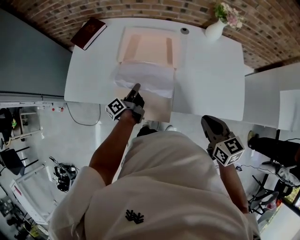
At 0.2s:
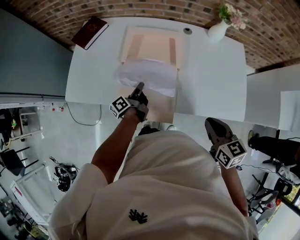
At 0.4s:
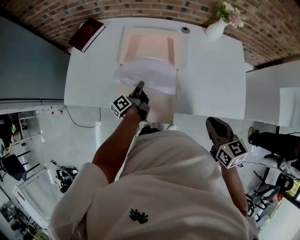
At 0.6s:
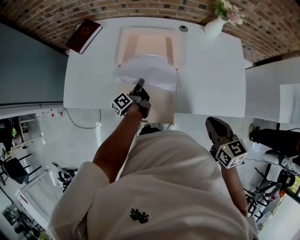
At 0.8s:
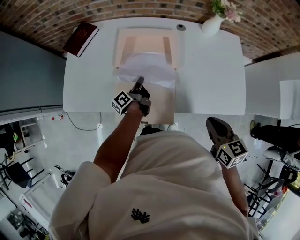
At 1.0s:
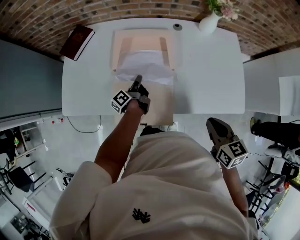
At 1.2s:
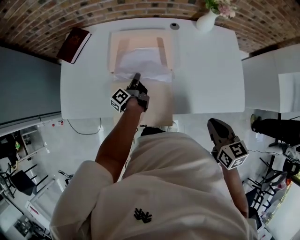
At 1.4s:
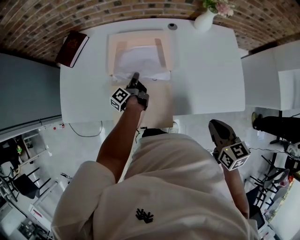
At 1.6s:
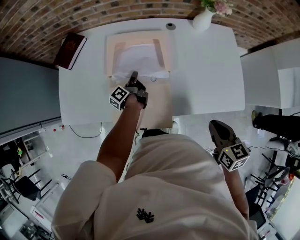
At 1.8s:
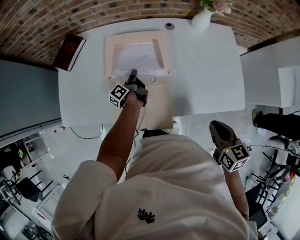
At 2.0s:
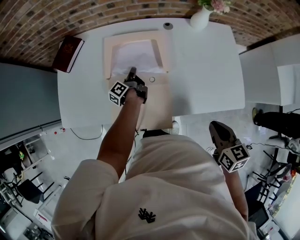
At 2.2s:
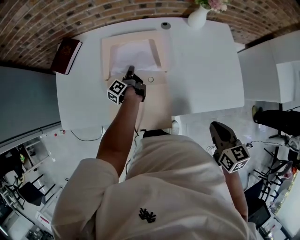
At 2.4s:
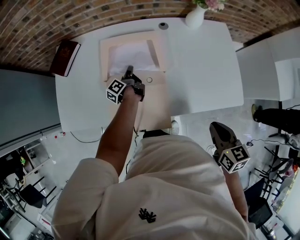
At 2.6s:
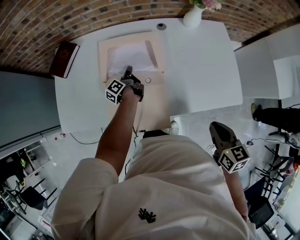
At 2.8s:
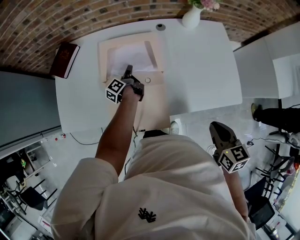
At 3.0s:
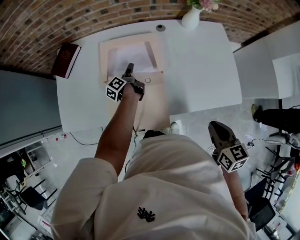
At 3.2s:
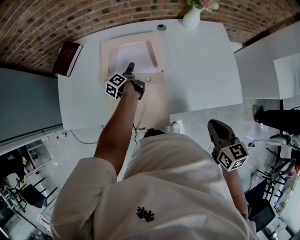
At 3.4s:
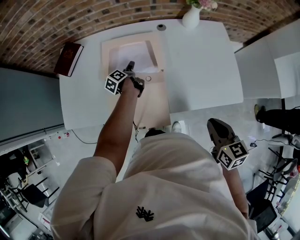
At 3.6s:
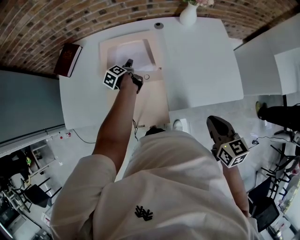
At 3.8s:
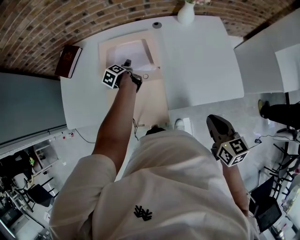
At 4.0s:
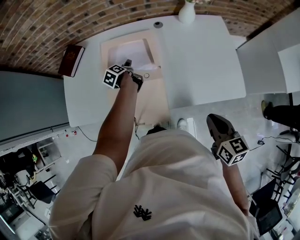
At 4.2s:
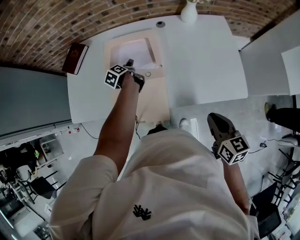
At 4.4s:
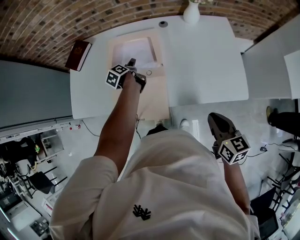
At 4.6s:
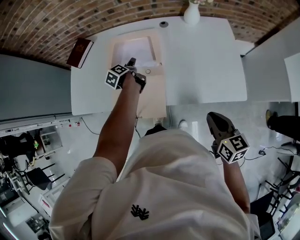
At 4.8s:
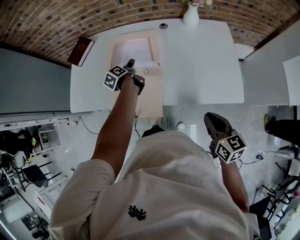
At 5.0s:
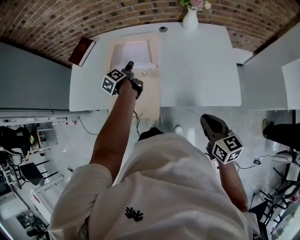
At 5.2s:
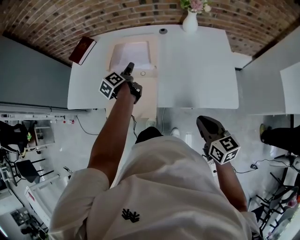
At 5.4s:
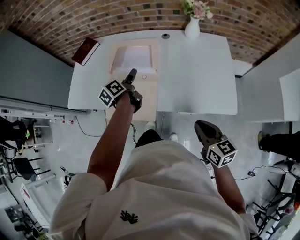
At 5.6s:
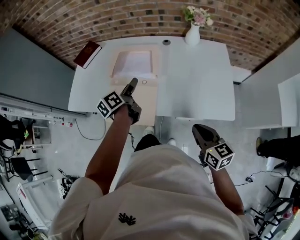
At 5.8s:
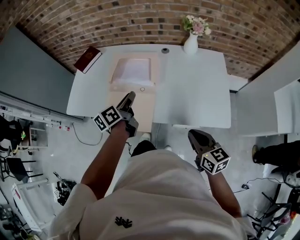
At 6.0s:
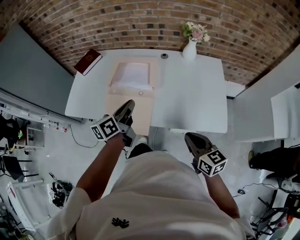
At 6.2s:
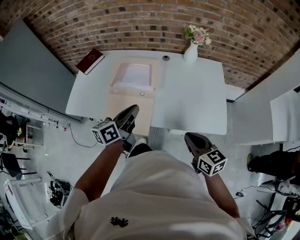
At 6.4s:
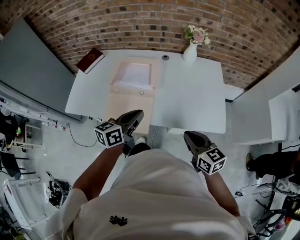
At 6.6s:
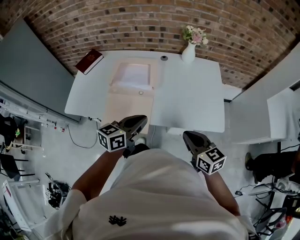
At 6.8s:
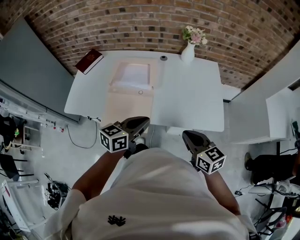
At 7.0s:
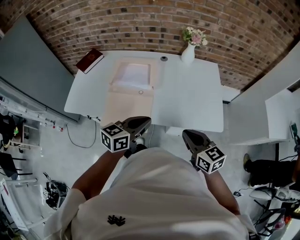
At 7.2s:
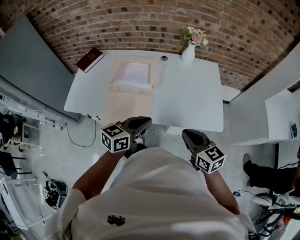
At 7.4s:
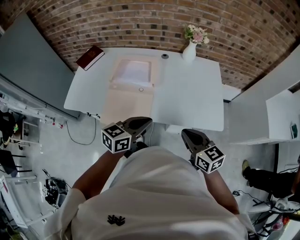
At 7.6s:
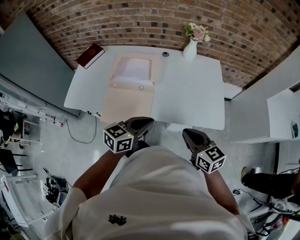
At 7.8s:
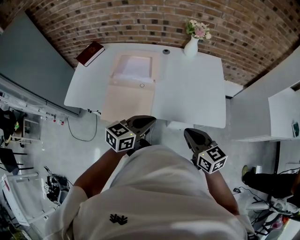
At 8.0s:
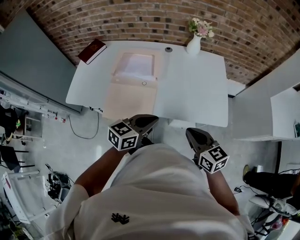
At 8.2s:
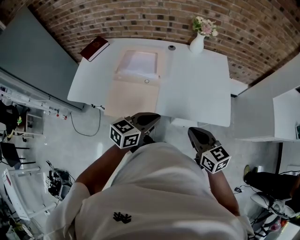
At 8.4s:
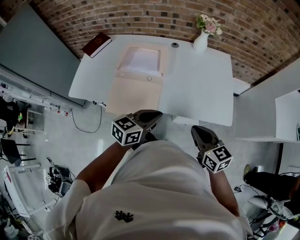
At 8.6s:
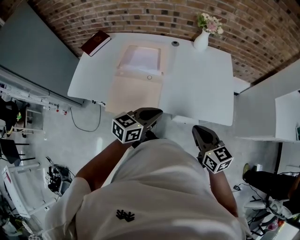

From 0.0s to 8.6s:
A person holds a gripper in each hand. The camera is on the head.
From 0.0s to 1.4s: The left gripper goes approximately 15 cm forward.
From 1.4s to 2.8s: The left gripper shifts some 5 cm forward.
From 2.8s to 4.4s: The left gripper shifts about 5 cm backward, rotates some 30 degrees, and opens. Meanwhile the right gripper travels to the right by roughly 5 cm.
From 4.4s to 5.8s: The left gripper moves backward and upward, approximately 25 cm, swivels some 30 degrees, and closes.
From 5.8s to 7.2s: The left gripper travels backward and to the right by about 20 cm, swivels roughly 50 degrees, and closes up. Meanwhile the right gripper ends up some 5 cm from where it was.
From 7.2s to 8.6s: The grippers move only a little.

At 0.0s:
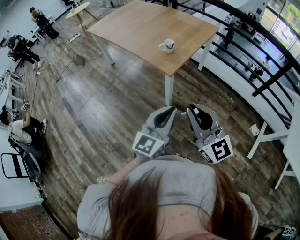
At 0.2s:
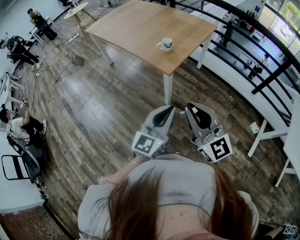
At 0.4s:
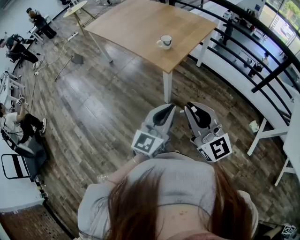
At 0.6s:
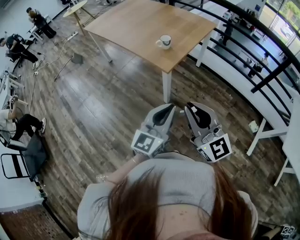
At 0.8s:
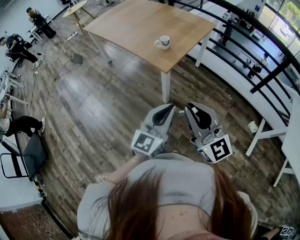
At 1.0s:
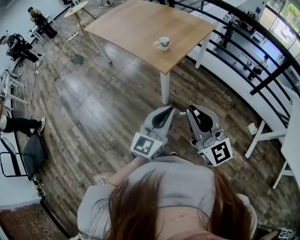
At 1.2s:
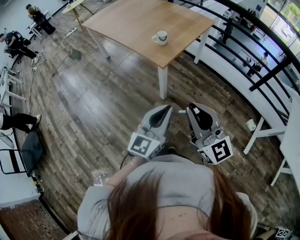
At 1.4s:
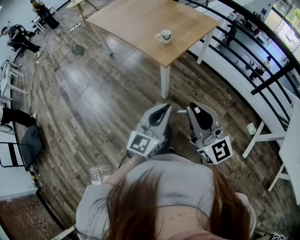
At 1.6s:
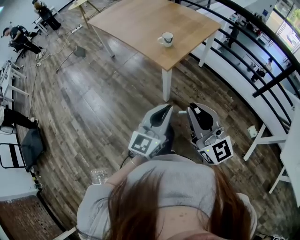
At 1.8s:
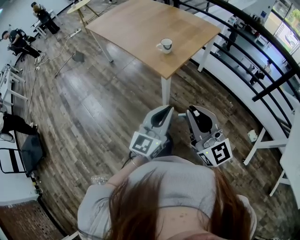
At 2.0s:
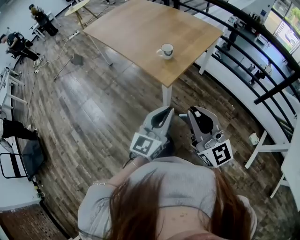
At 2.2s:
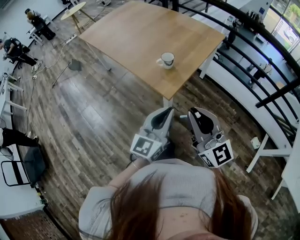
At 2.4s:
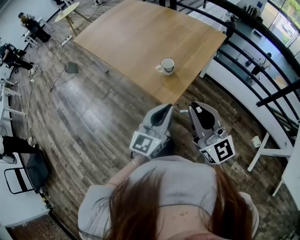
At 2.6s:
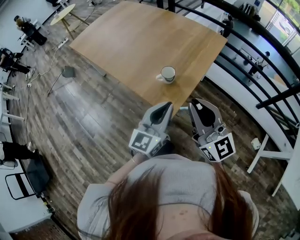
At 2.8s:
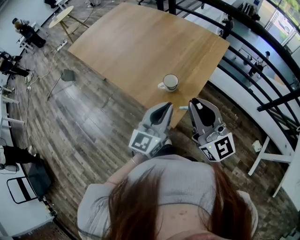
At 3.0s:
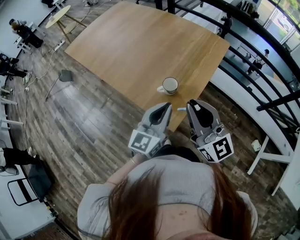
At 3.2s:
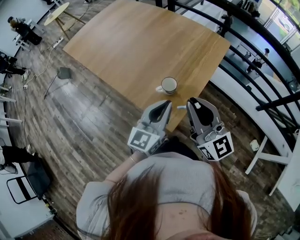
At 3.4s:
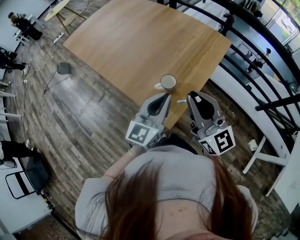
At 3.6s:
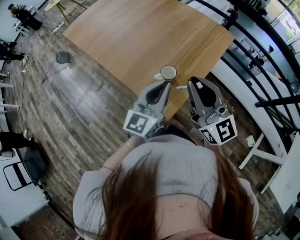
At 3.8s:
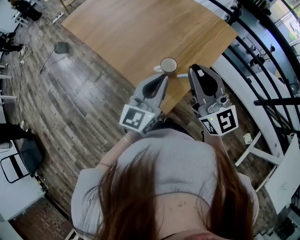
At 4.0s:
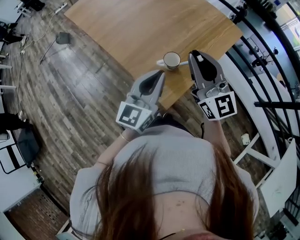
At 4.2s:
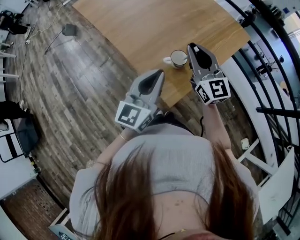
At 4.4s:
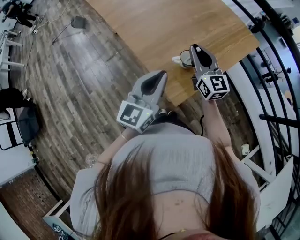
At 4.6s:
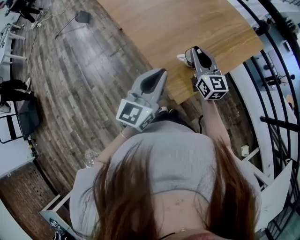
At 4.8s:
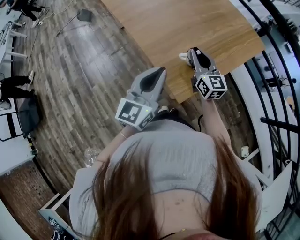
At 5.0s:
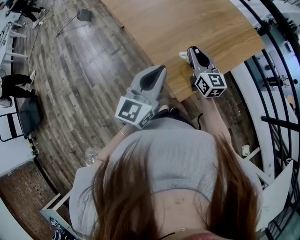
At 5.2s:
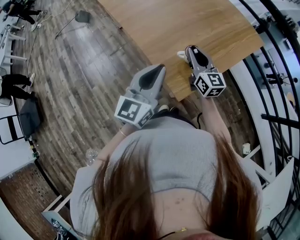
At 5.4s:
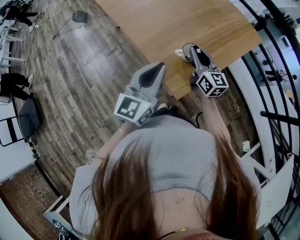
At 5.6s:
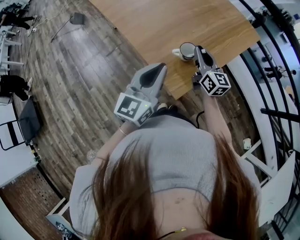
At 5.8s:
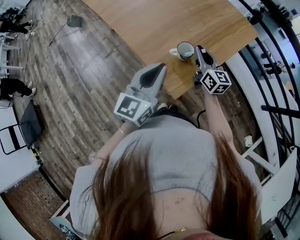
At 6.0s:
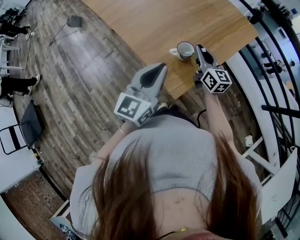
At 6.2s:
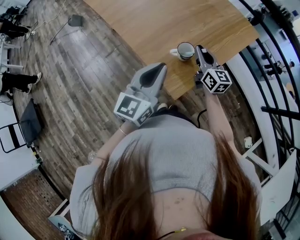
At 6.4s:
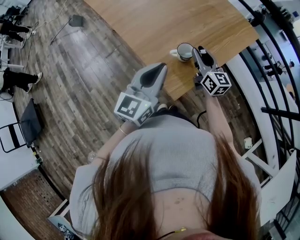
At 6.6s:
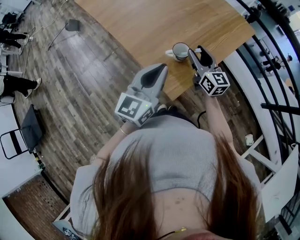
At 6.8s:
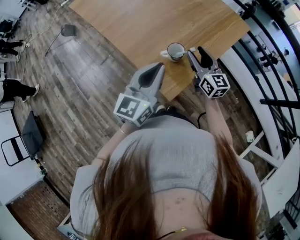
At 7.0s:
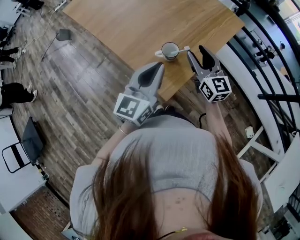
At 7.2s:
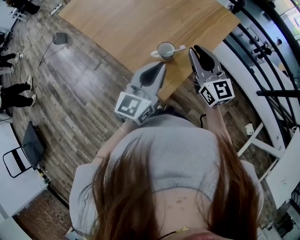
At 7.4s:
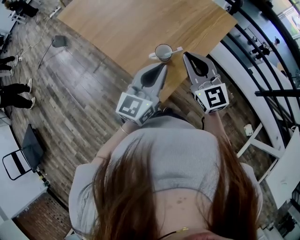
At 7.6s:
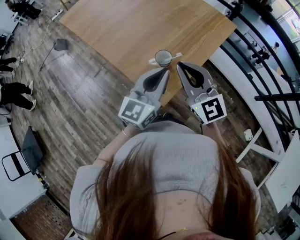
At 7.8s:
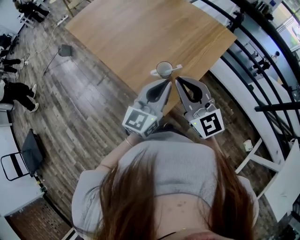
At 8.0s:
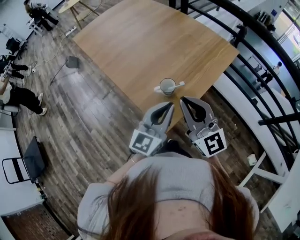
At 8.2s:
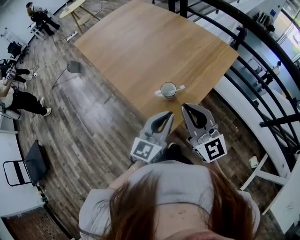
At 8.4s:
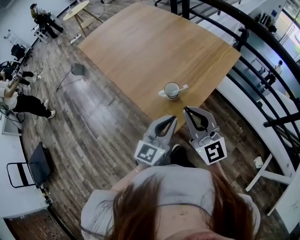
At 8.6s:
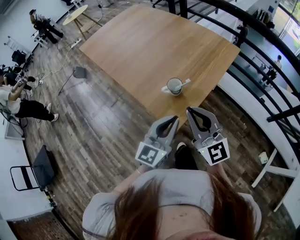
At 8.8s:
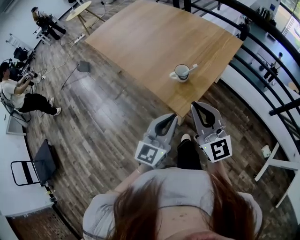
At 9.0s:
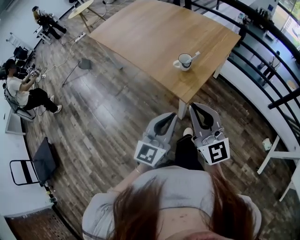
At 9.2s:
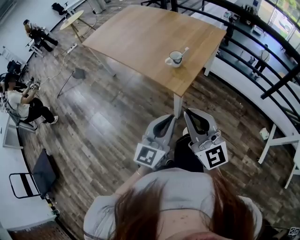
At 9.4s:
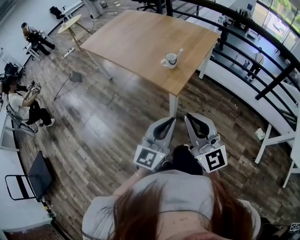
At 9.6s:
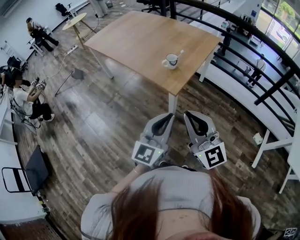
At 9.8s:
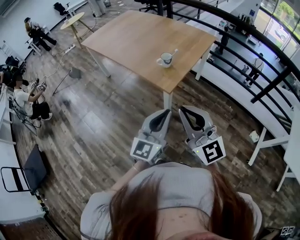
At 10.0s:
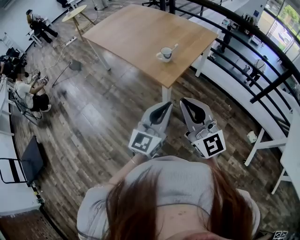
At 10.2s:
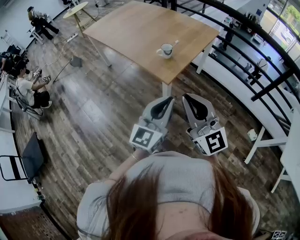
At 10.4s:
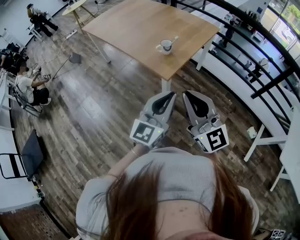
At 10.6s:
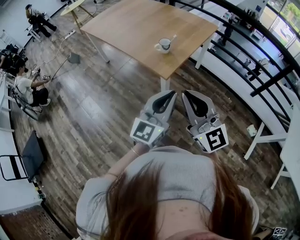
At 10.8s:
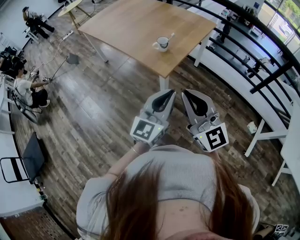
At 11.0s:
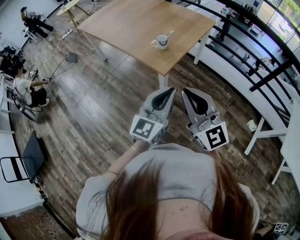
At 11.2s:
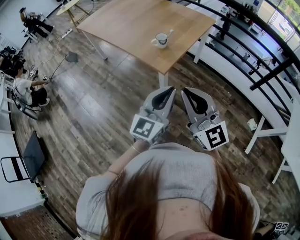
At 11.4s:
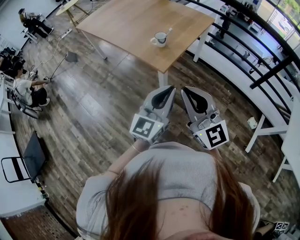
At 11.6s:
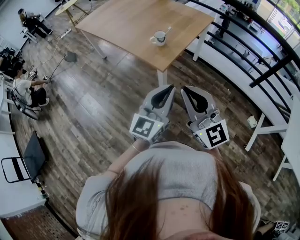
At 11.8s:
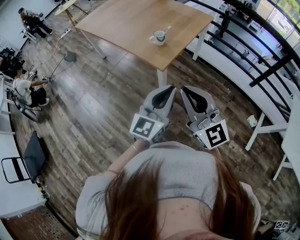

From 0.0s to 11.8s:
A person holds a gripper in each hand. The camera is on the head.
From 0.0s to 1.4s: The grippers stay close to where they were, moving slightly.
From 1.4s to 3.0s: Both grippers move forward, some 35 cm.
From 3.0s to 4.4s: The right gripper goes roughly 20 cm forward and downward.
From 4.4s to 6.0s: The right gripper heads downward, covering some 10 cm.
From 6.0s to 7.4s: The left gripper moves to the right, about 5 cm, while the right gripper moves upward and backward, approximately 15 cm, swivels some 30 degrees, and opens and closes again.
From 7.4s to 8.8s: The grippers both shift backward by about 15 cm.
From 8.8s to 10.4s: The left gripper goes some 15 cm backward and upward. The right gripper is displaced backward by some 20 cm.
From 10.4s to 11.8s: There are only small adjustments of the grippers.

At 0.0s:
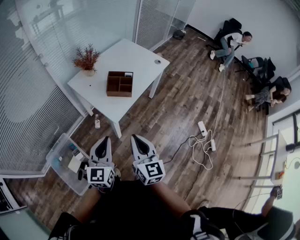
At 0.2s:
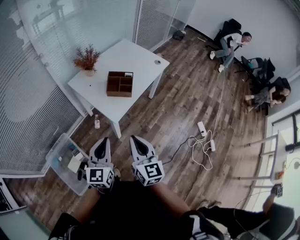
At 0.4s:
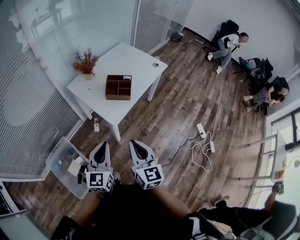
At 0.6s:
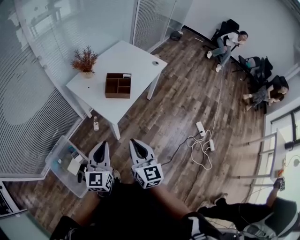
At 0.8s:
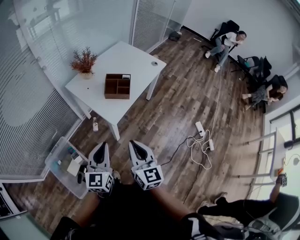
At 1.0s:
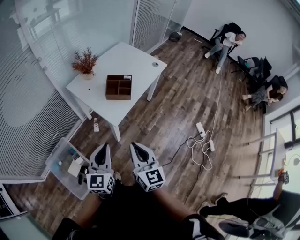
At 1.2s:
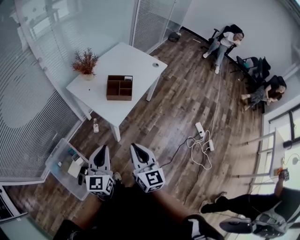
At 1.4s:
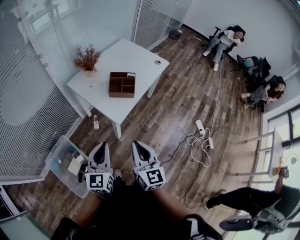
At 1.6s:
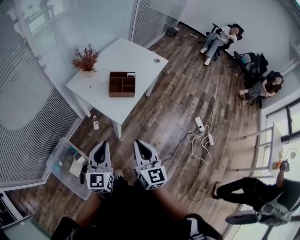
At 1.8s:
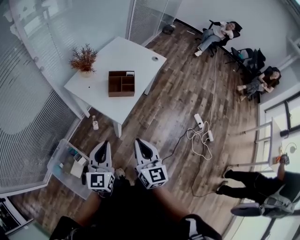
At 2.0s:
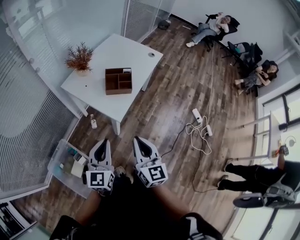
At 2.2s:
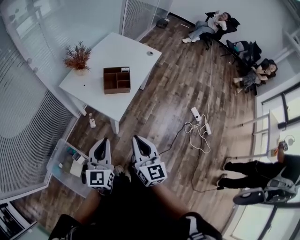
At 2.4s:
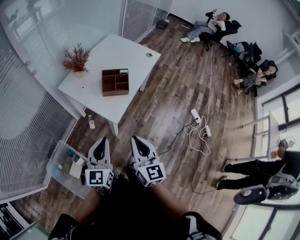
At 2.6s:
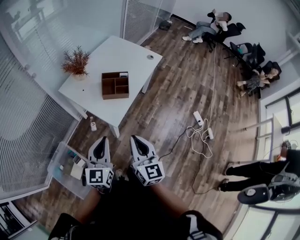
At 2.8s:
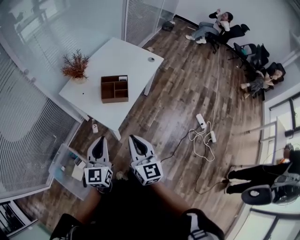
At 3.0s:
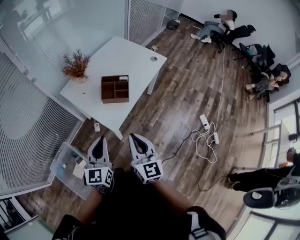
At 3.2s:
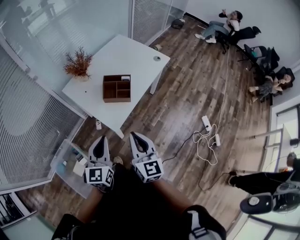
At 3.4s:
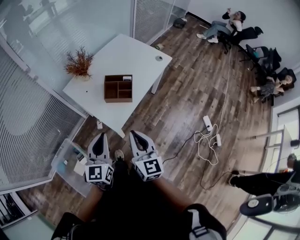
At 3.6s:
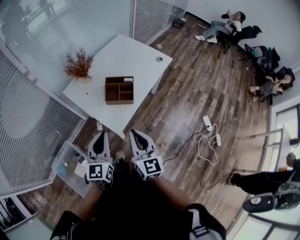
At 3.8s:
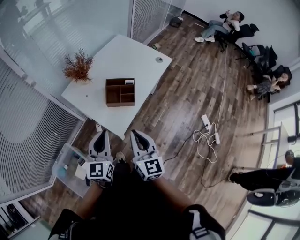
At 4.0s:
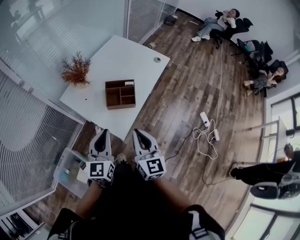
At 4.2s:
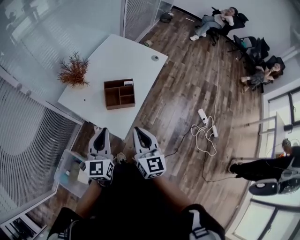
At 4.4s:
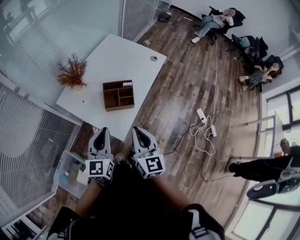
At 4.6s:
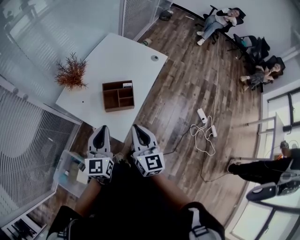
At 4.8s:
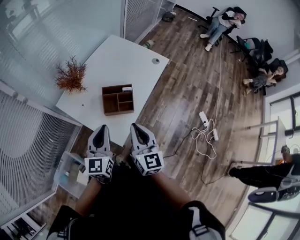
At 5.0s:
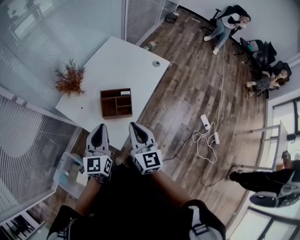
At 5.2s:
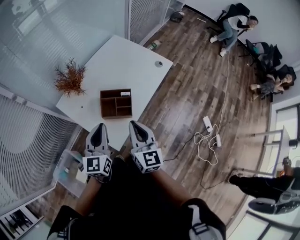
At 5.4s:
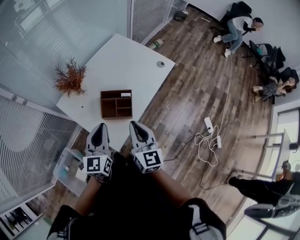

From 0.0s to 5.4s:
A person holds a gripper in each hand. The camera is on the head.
From 0.0s to 1.4s: The left gripper travels to the left by approximately 5 cm.
From 1.4s to 2.8s: The grippers both shift forward by approximately 10 cm.
From 2.8s to 4.0s: The two grippers go roughly 10 cm forward.
From 4.0s to 5.4s: The grippers both shift forward by about 15 cm.
